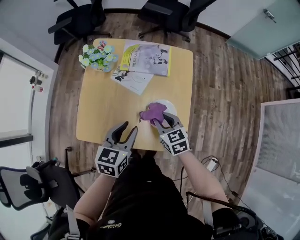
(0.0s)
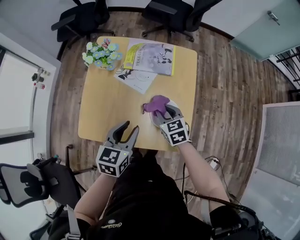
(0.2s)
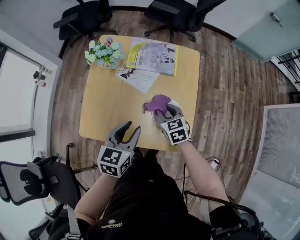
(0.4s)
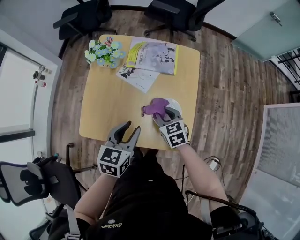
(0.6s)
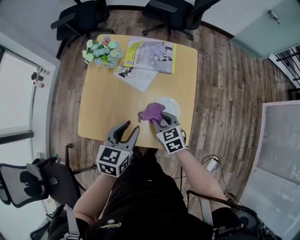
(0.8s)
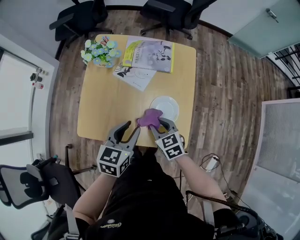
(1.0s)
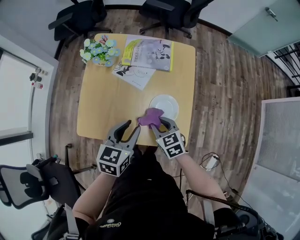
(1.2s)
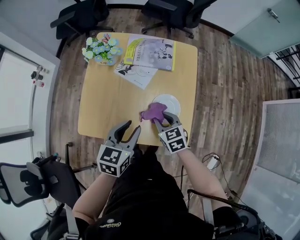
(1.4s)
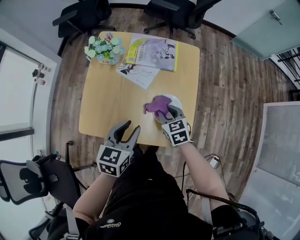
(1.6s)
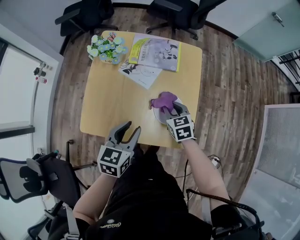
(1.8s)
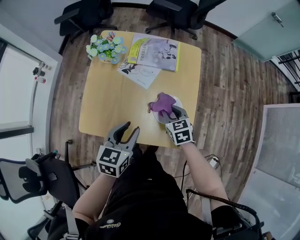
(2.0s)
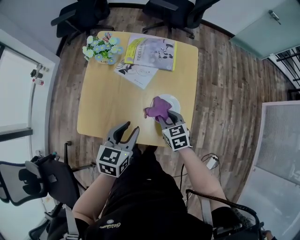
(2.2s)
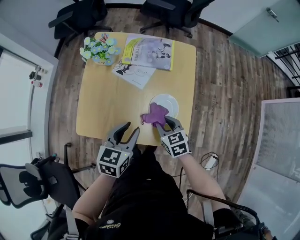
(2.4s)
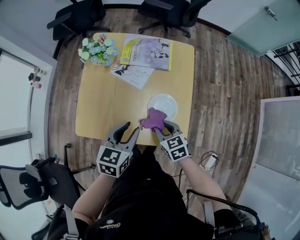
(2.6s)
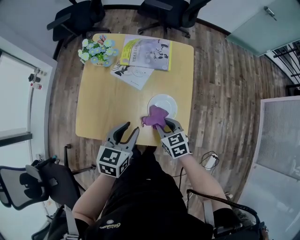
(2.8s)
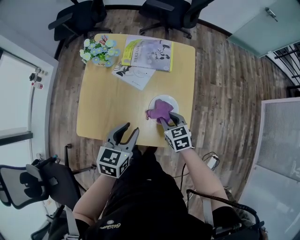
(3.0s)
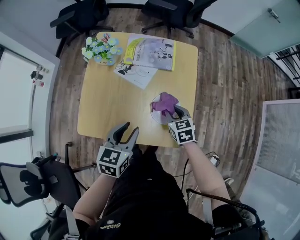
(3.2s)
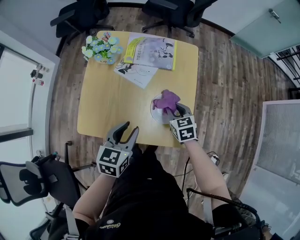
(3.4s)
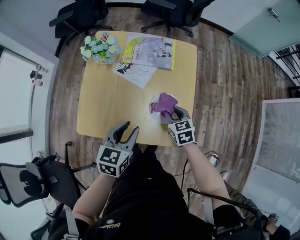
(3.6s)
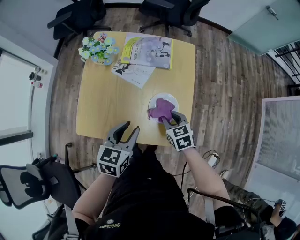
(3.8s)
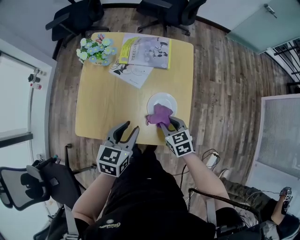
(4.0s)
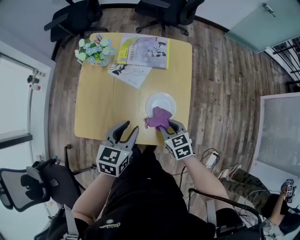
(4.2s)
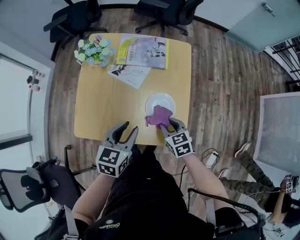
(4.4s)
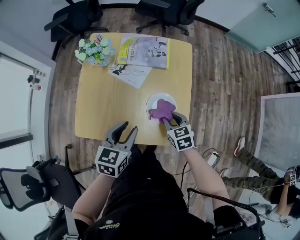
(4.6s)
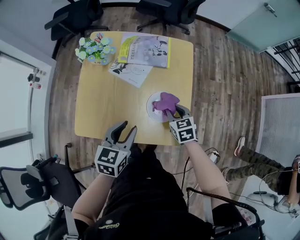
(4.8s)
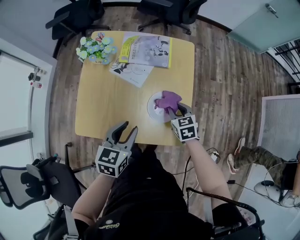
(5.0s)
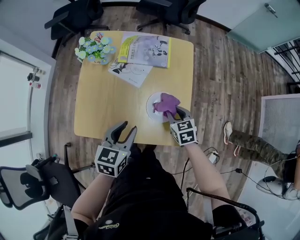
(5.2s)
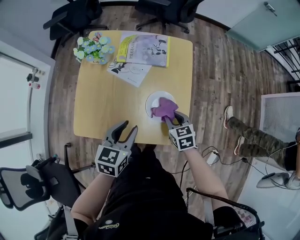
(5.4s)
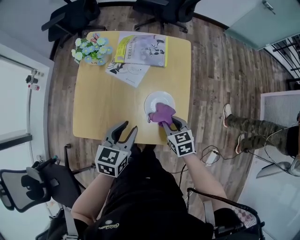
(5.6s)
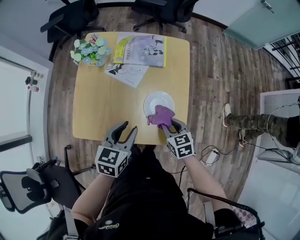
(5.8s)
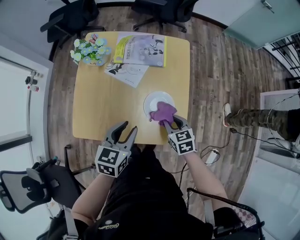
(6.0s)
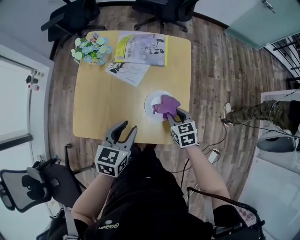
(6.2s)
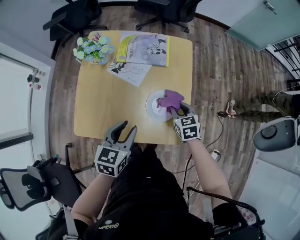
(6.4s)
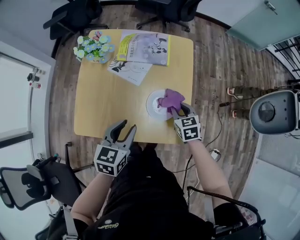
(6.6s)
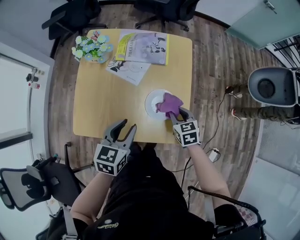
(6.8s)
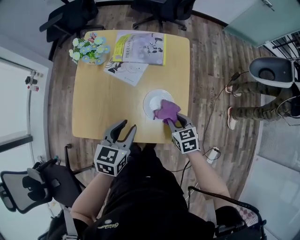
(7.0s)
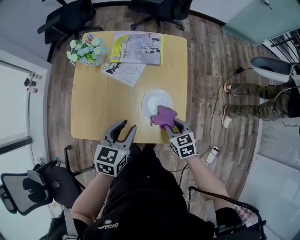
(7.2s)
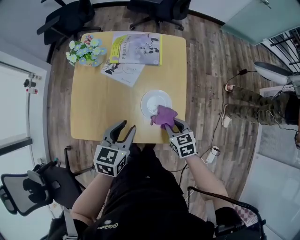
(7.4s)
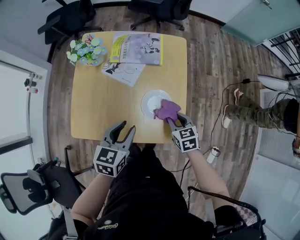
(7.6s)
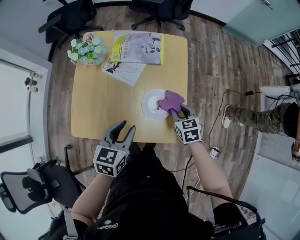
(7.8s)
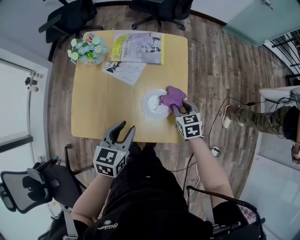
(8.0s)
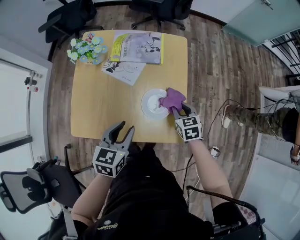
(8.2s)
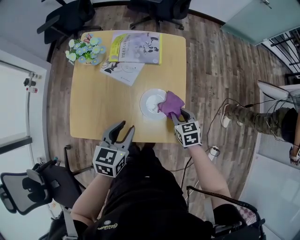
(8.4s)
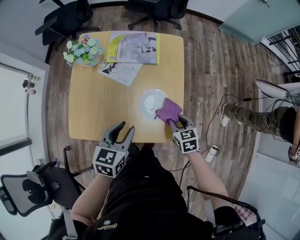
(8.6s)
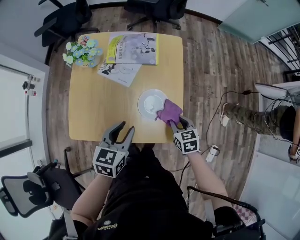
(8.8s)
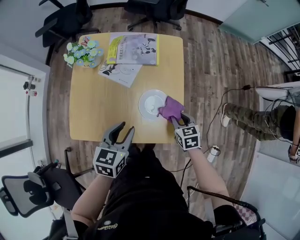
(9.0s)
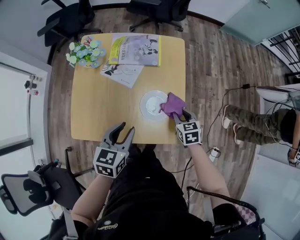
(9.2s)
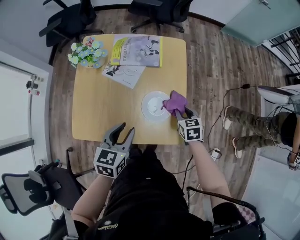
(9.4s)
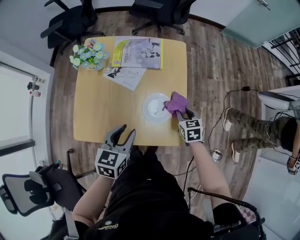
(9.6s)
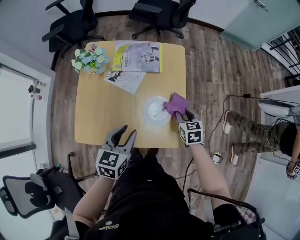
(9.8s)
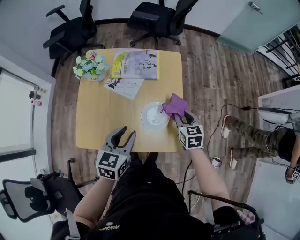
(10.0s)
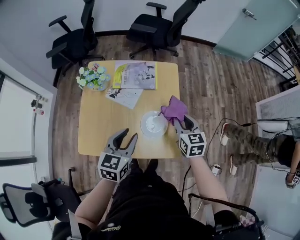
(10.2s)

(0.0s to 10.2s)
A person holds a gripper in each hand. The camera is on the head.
0.0s - 1.4s: There are only small adjustments of the grippers.
1.4s - 3.0s: The right gripper swings forward and backward, roughly 10 cm each way, with 2 reversals.
3.0s - 4.4s: The grippers move only a little.
4.4s - 5.8s: The right gripper goes forward and returns, about 5 cm each way.
5.8s - 7.2s: The right gripper goes forward and returns, some 10 cm each way.
7.2s - 8.8s: The right gripper moves roughly 10 cm forward and comes back.
8.8s - 10.2s: The right gripper goes some 15 cm upward and forward, and turns by some 20 degrees. Meanwhile the left gripper moves upward, approximately 5 cm.

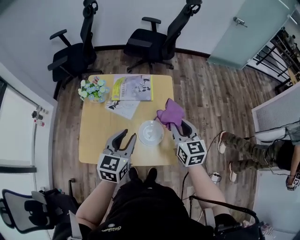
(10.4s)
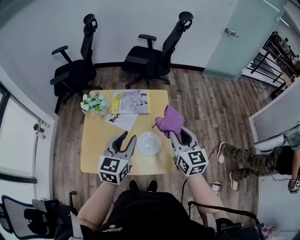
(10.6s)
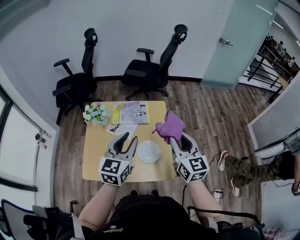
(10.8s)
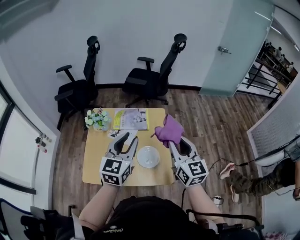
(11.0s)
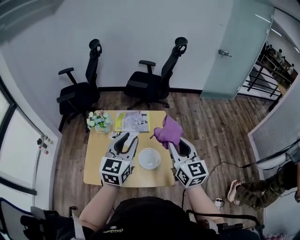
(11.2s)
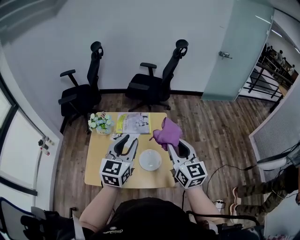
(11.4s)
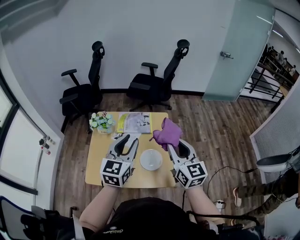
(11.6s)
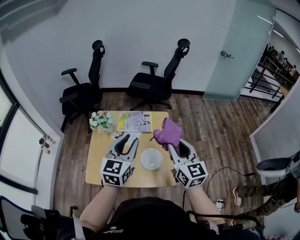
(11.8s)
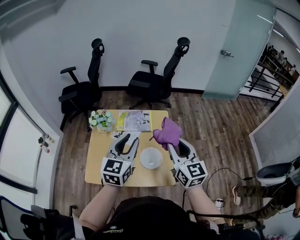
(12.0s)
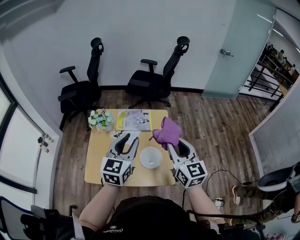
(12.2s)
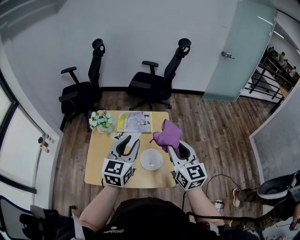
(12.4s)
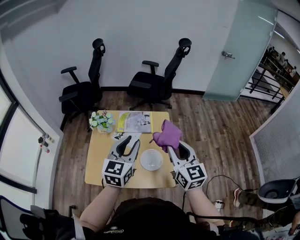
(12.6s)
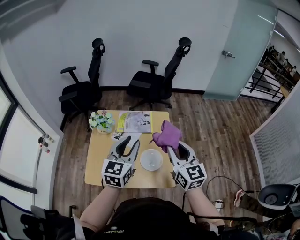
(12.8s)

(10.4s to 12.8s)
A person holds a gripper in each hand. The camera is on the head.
10.4s - 11.6s: The right gripper goes some 15 cm upward and backward. The left gripper goes roughly 15 cm upward.
11.6s - 12.8s: The grippers move only a little.

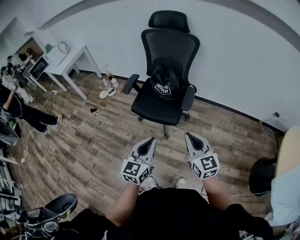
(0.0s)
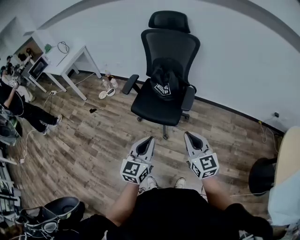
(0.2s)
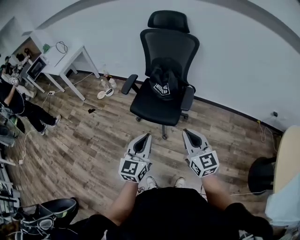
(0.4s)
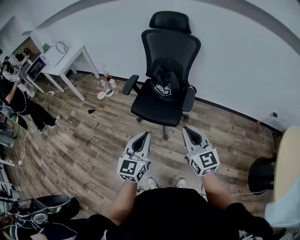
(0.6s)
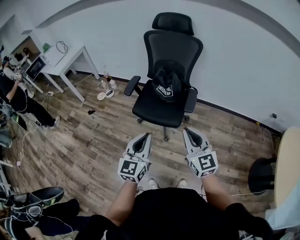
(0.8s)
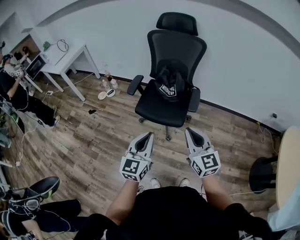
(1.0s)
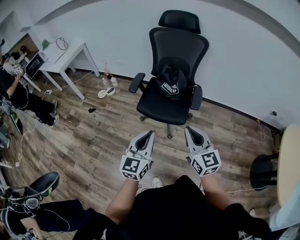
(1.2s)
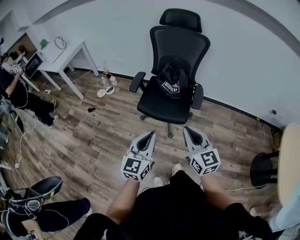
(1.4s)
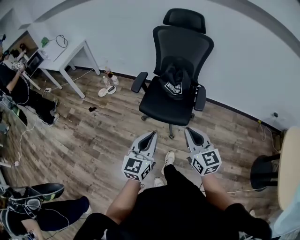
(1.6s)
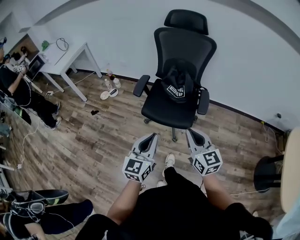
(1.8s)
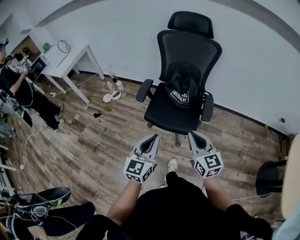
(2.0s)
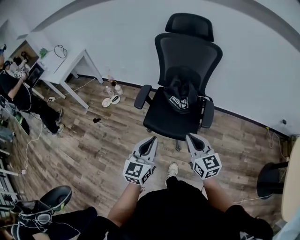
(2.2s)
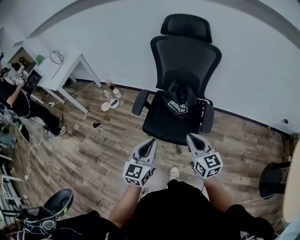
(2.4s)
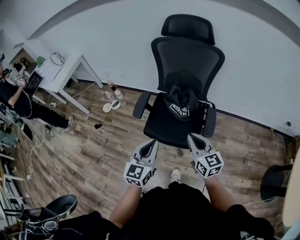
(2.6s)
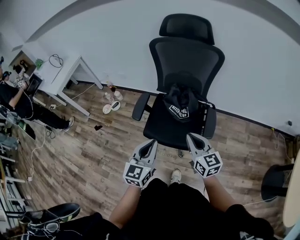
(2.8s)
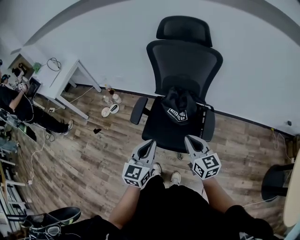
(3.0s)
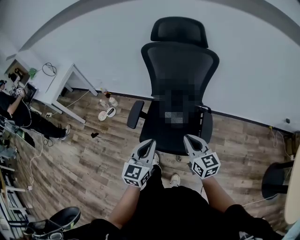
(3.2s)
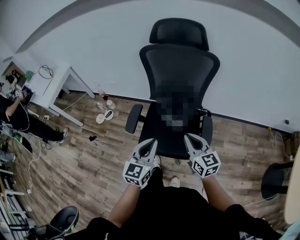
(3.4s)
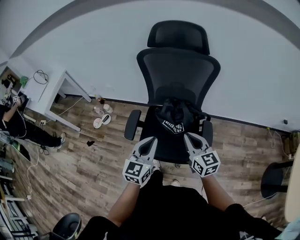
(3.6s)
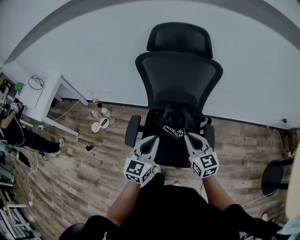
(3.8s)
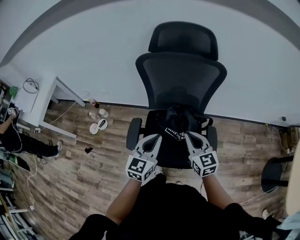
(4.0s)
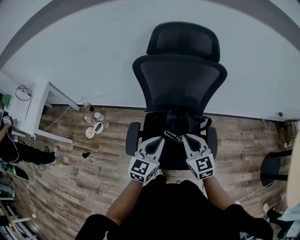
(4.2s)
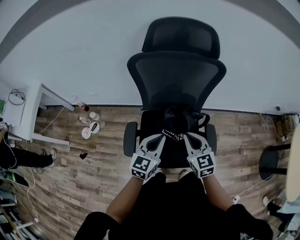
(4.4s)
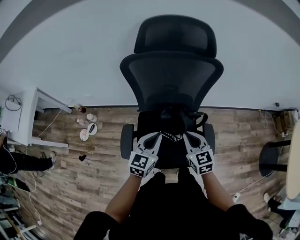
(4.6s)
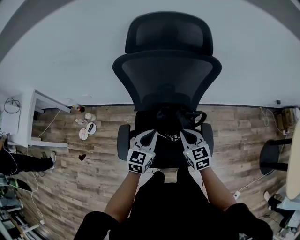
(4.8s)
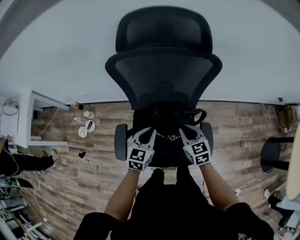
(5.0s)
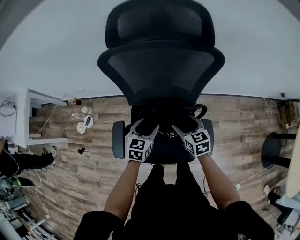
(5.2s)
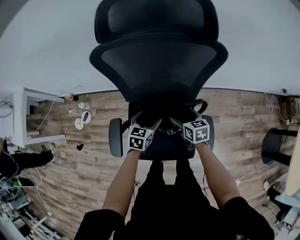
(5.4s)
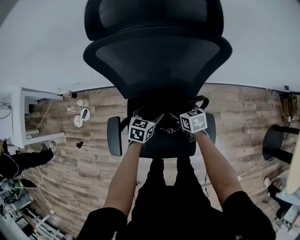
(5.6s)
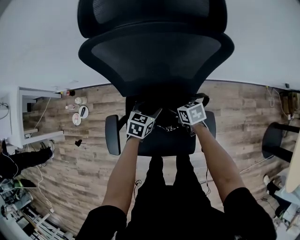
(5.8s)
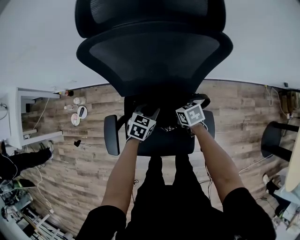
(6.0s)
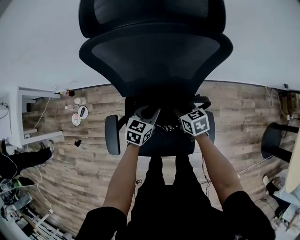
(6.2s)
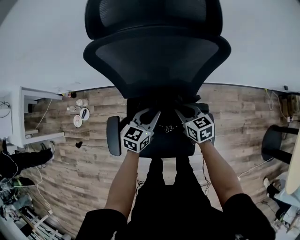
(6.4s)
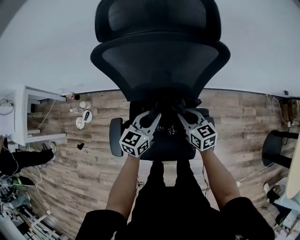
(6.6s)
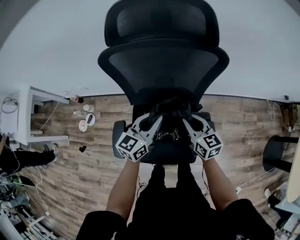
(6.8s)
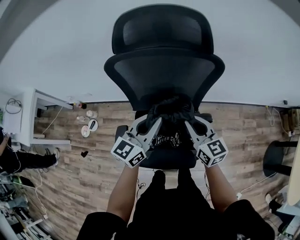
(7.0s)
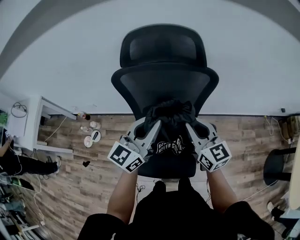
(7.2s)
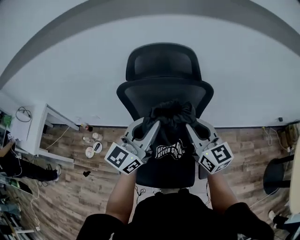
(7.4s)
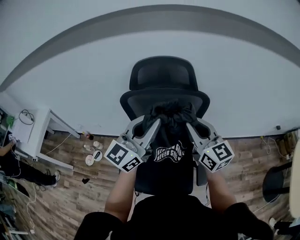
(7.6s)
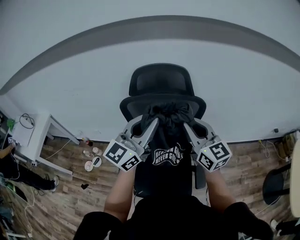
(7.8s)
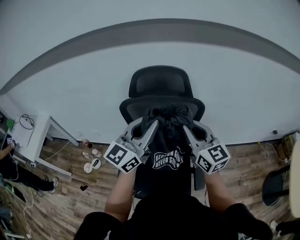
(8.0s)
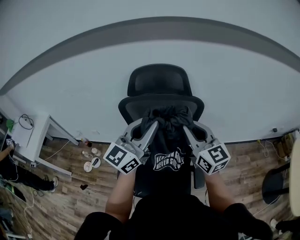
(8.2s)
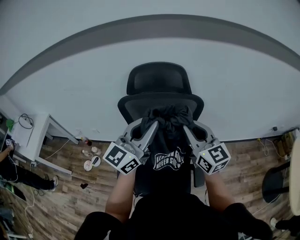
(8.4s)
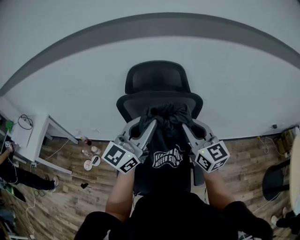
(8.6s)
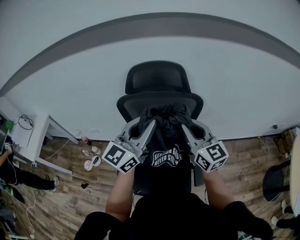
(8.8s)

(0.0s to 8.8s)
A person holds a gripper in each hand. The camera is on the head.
0.0s - 1.4s: Both grippers travel together to the left, some 15 cm.
1.4s - 3.0s: The two grippers go about 25 cm forward.
3.0s - 4.4s: Both grippers travel together forward, approximately 25 cm. The right gripper changes its angle by some 20 degrees, while the left gripper turns by approximately 20 degrees.
4.4s - 5.8s: Both grippers move downward and forward, roughly 30 cm. The right gripper swivels some 40 degrees, and opens its fingers. The left gripper changes its angle by some 30 degrees, and opens.
5.8s - 7.4s: Both grippers travel together upward, about 40 cm. The right gripper tilts its fingers some 50 degrees upward, and closes its fingers; the left gripper tilts its fingers some 50 degrees upward, and closes its fingers.
7.4s - 8.8s: The right gripper moves about 5 cm. Meanwhile the left gripper travels upward by about 5 cm.

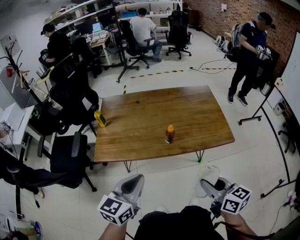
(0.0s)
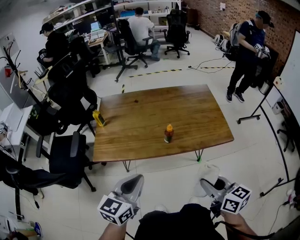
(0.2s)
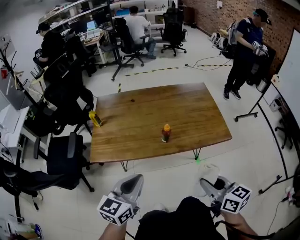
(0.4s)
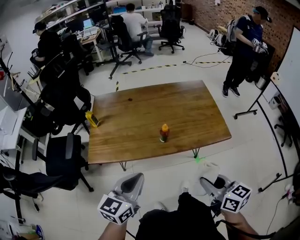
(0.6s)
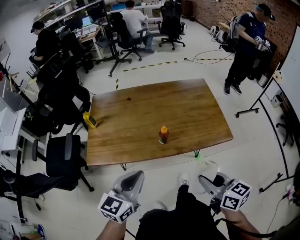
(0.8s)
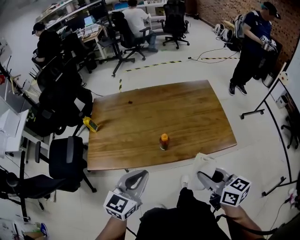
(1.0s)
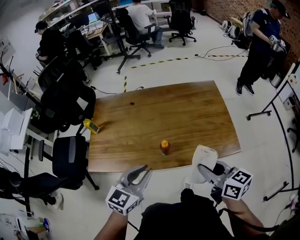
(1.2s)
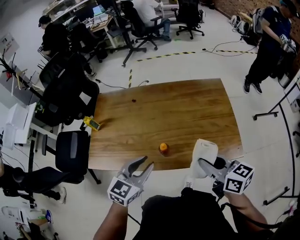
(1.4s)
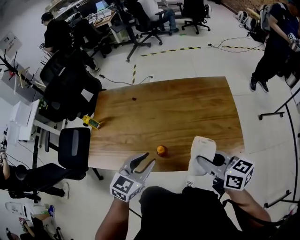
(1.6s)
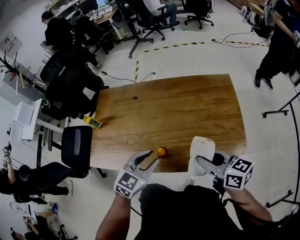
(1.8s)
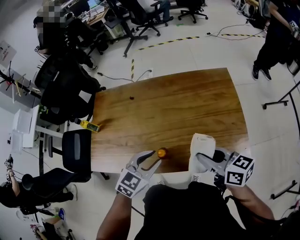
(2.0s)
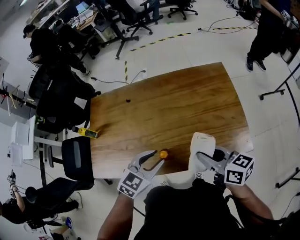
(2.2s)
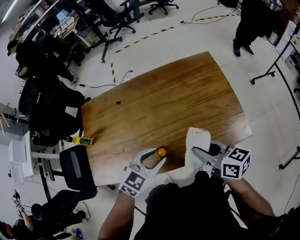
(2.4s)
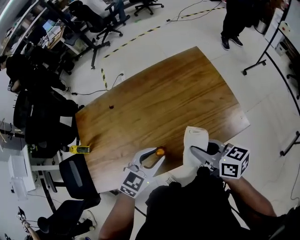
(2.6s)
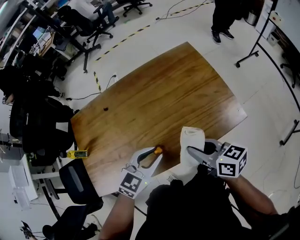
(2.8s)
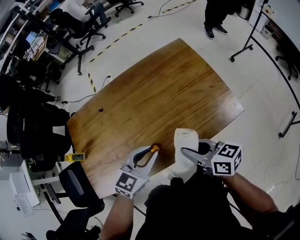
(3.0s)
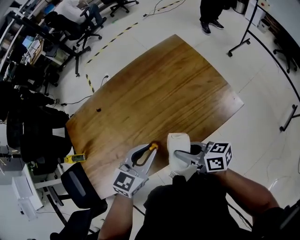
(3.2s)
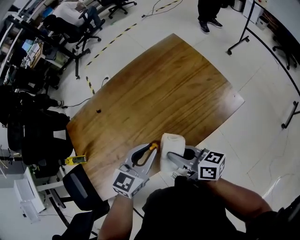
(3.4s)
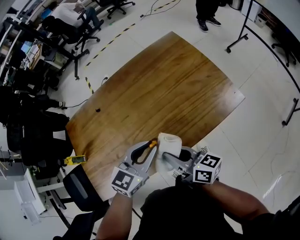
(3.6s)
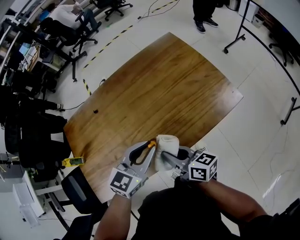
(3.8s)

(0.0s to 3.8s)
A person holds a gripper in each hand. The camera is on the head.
0.0s - 1.2s: The left gripper heads forward and to the right, covering roughly 15 cm; the right gripper travels forward by about 20 cm.
1.2s - 2.6s: The right gripper travels forward and downward by about 15 cm. Meanwhile the left gripper heads forward, downward and to the right, covering roughly 15 cm, and changes its angle by about 30 degrees.
2.6s - 3.8s: The right gripper shifts roughly 10 cm to the left and downward.
